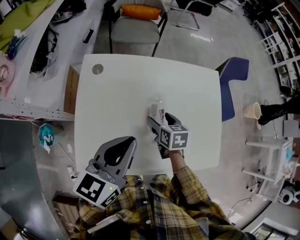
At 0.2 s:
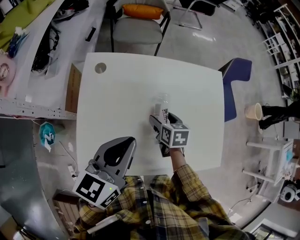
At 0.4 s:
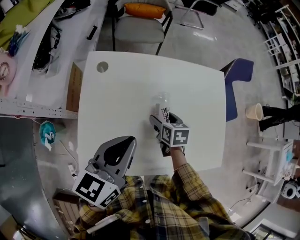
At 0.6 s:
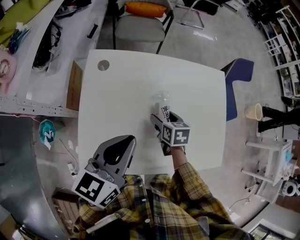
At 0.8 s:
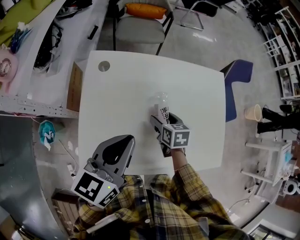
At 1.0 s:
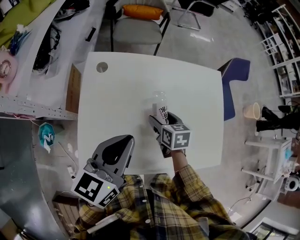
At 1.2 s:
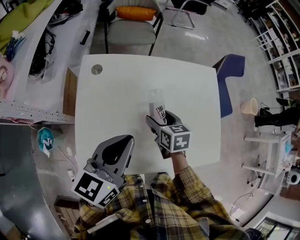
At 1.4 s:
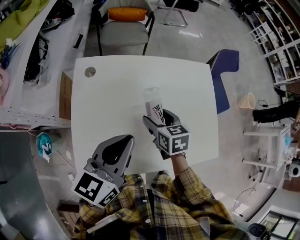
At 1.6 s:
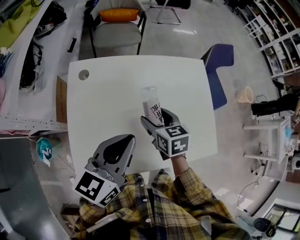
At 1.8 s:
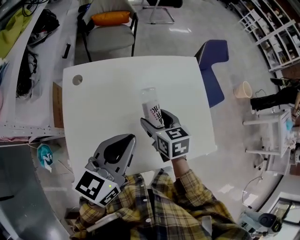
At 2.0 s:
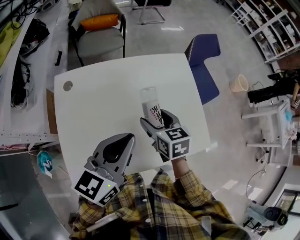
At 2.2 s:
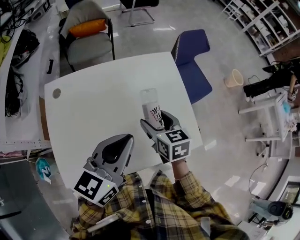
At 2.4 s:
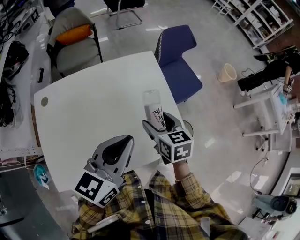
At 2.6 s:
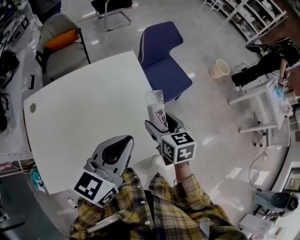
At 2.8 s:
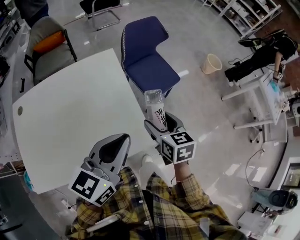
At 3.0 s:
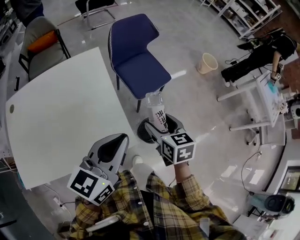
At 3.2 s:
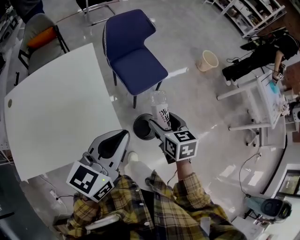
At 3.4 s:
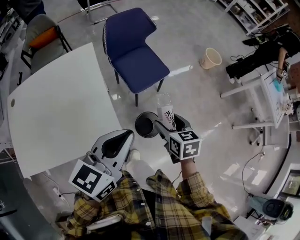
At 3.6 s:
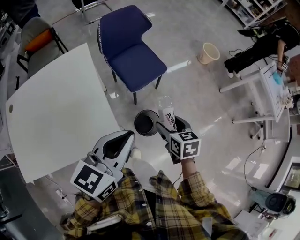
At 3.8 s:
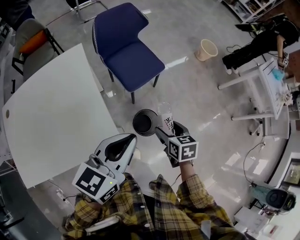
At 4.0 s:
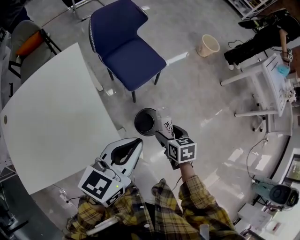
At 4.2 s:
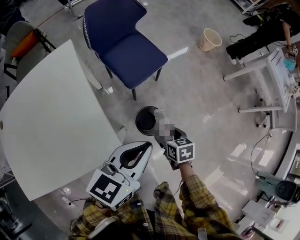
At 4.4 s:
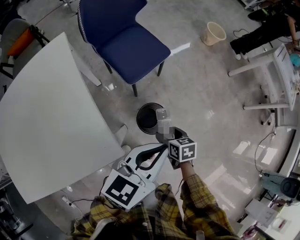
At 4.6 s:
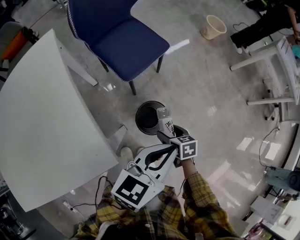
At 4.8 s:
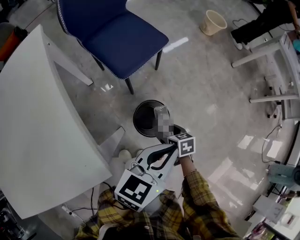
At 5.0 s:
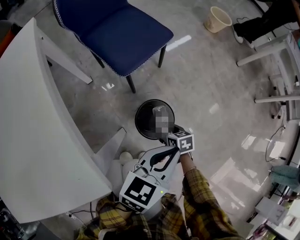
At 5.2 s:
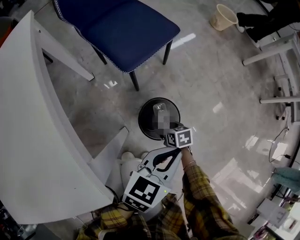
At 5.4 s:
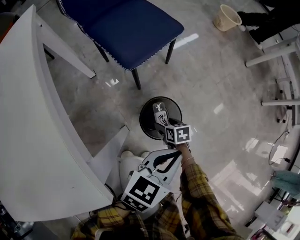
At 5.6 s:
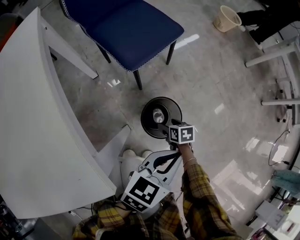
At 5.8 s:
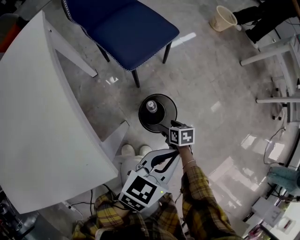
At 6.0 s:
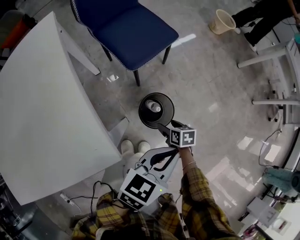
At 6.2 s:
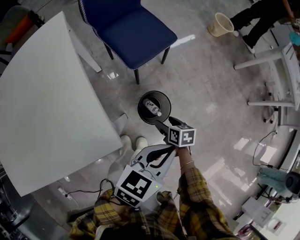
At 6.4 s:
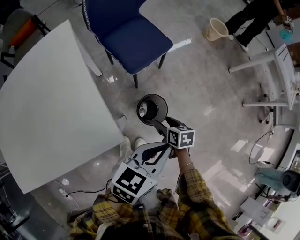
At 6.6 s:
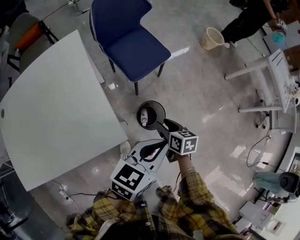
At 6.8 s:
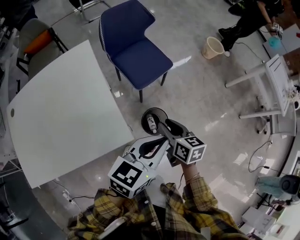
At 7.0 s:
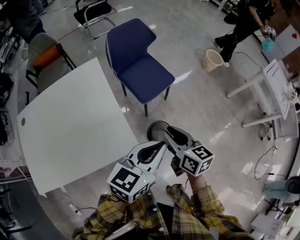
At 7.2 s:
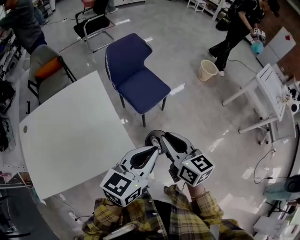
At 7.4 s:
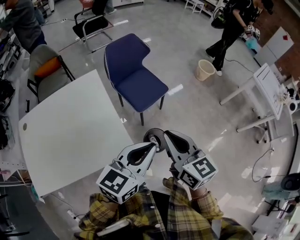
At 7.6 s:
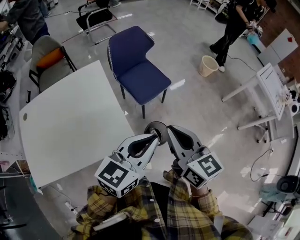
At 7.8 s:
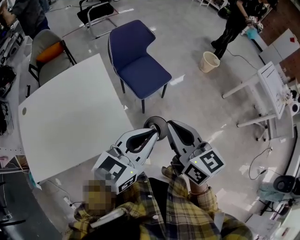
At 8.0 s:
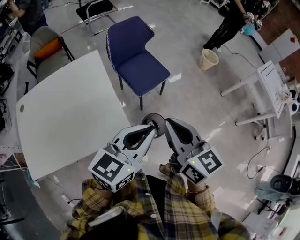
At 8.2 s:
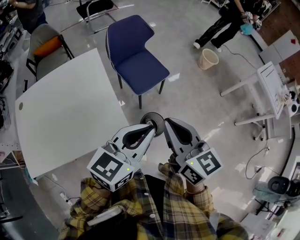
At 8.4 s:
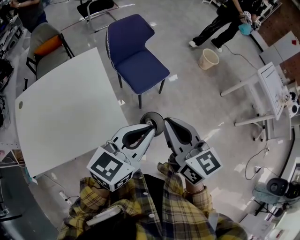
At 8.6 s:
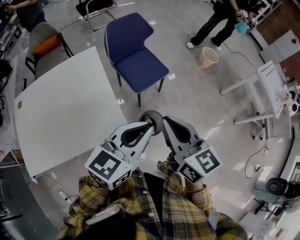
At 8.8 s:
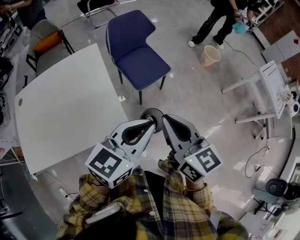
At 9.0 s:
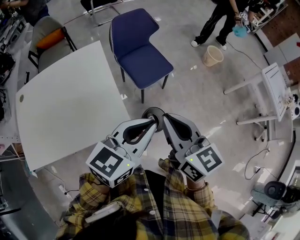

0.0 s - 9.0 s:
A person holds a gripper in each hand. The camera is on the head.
0.0 s - 1.6 s: The right gripper travels upward by roughly 5 cm.
1.6 s - 3.0 s: The two grippers travel together, to the right, approximately 50 cm. The right gripper changes its angle by approximately 20 degrees.
3.0 s - 4.4 s: The left gripper is displaced to the right and downward by about 25 cm, and swivels approximately 20 degrees. Meanwhile the right gripper is displaced downward and to the right by about 30 cm, and rotates about 20 degrees.
4.4 s - 6.0 s: The grippers both shift downward by approximately 15 cm.
6.0 s - 7.6 s: The right gripper is displaced upward by roughly 60 cm, points its fingers about 50 degrees further upward, and closes up; the left gripper heads upward, covering some 35 cm, and turns by roughly 20 degrees.
7.6 s - 9.0 s: The grippers move only a little.

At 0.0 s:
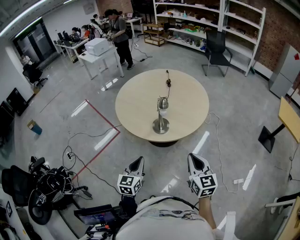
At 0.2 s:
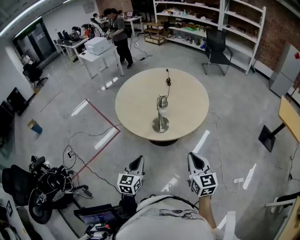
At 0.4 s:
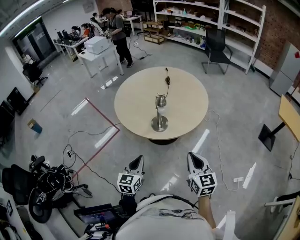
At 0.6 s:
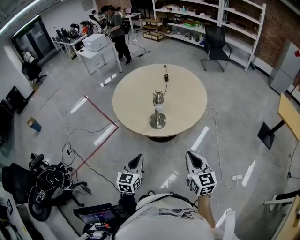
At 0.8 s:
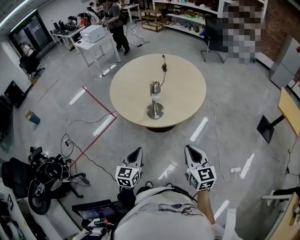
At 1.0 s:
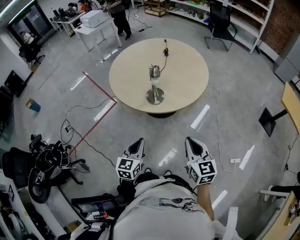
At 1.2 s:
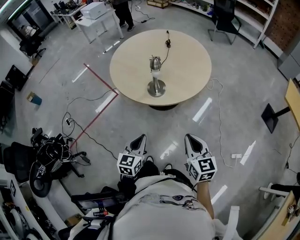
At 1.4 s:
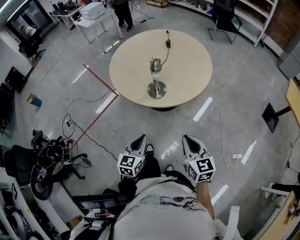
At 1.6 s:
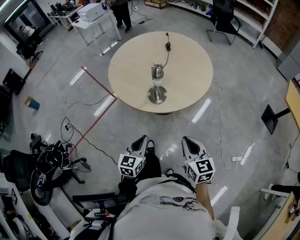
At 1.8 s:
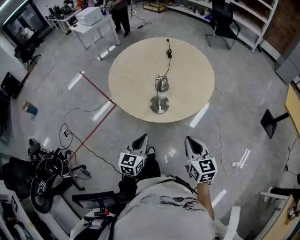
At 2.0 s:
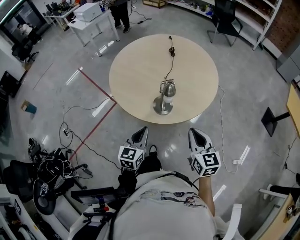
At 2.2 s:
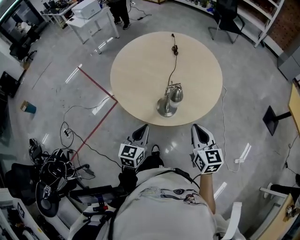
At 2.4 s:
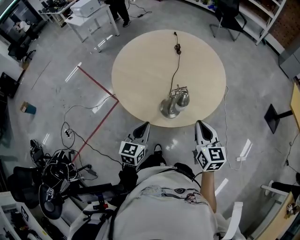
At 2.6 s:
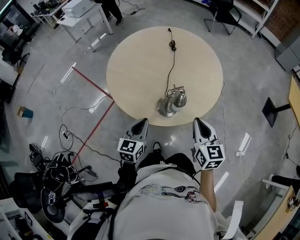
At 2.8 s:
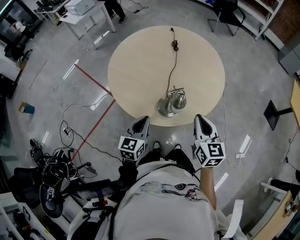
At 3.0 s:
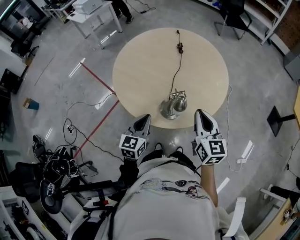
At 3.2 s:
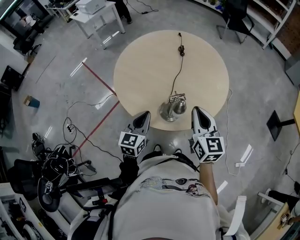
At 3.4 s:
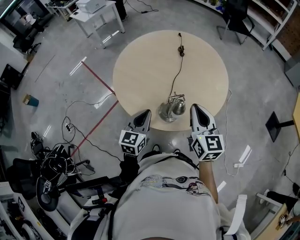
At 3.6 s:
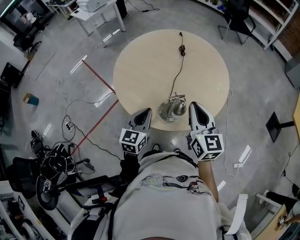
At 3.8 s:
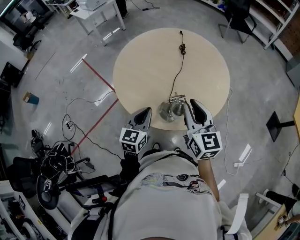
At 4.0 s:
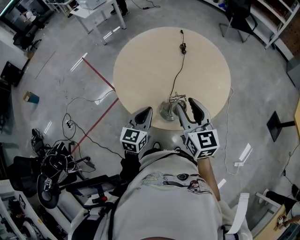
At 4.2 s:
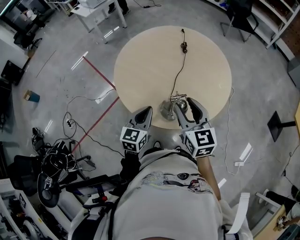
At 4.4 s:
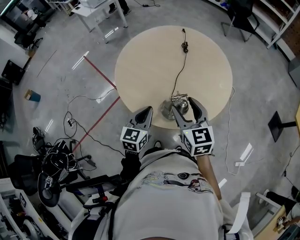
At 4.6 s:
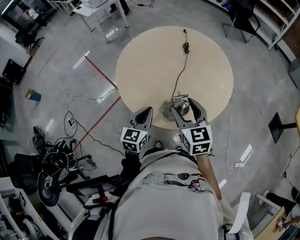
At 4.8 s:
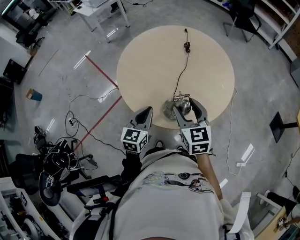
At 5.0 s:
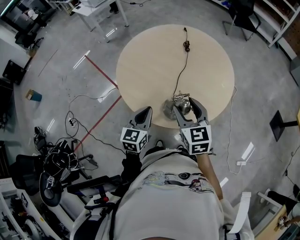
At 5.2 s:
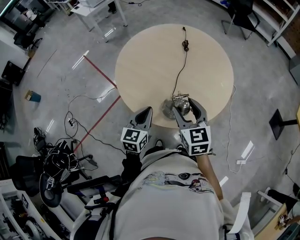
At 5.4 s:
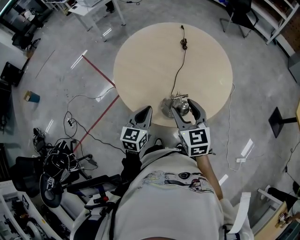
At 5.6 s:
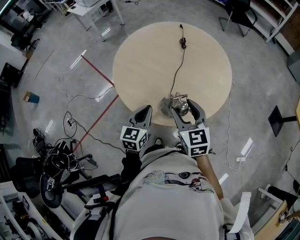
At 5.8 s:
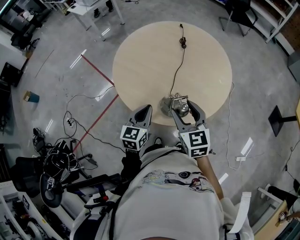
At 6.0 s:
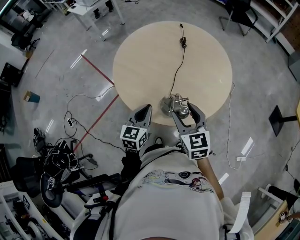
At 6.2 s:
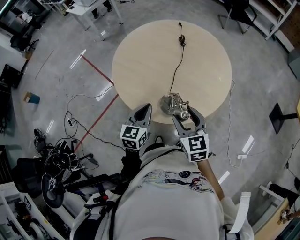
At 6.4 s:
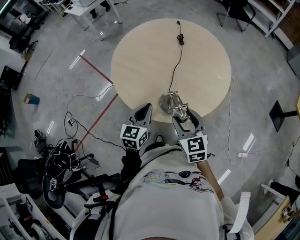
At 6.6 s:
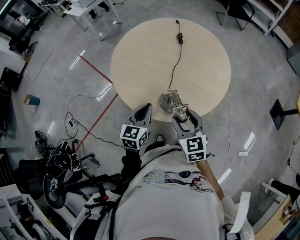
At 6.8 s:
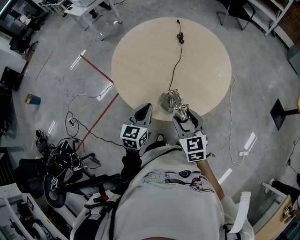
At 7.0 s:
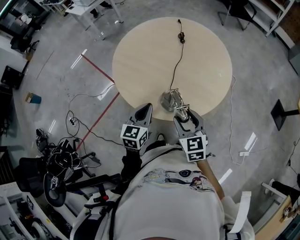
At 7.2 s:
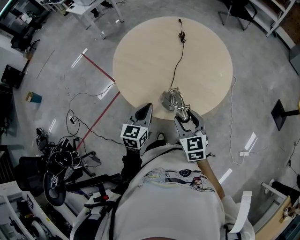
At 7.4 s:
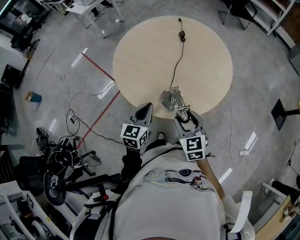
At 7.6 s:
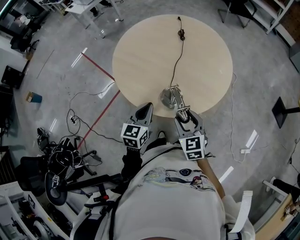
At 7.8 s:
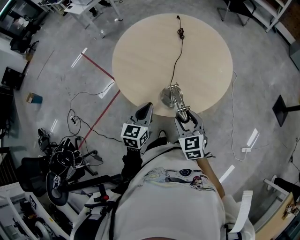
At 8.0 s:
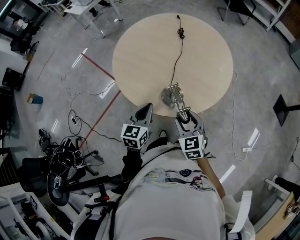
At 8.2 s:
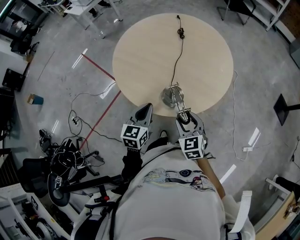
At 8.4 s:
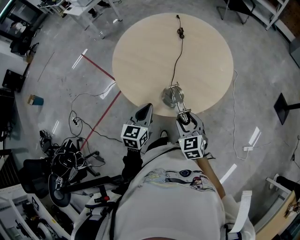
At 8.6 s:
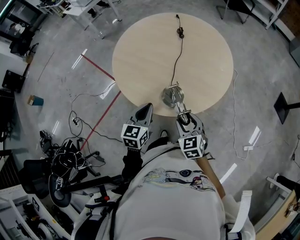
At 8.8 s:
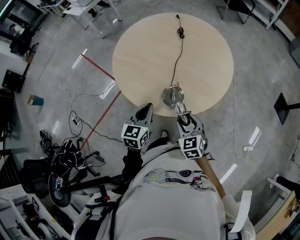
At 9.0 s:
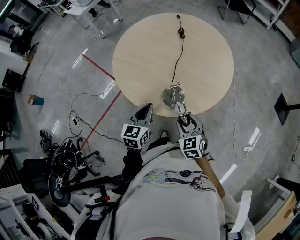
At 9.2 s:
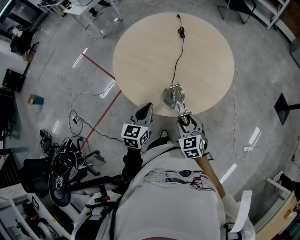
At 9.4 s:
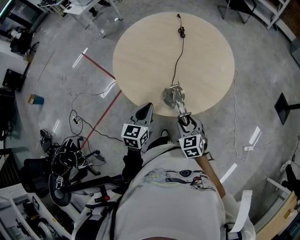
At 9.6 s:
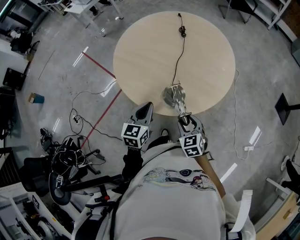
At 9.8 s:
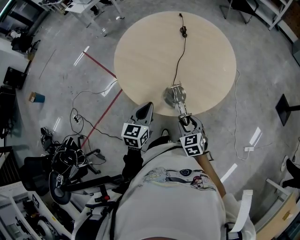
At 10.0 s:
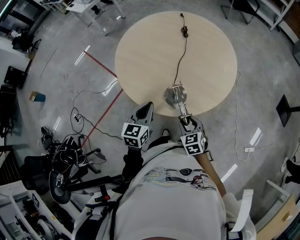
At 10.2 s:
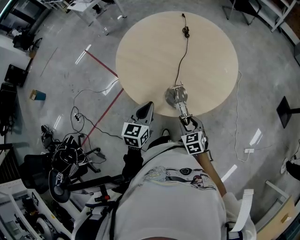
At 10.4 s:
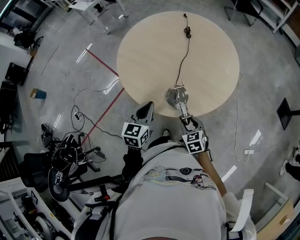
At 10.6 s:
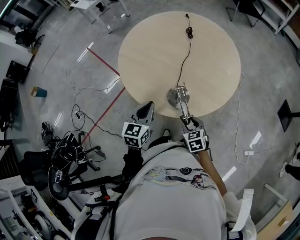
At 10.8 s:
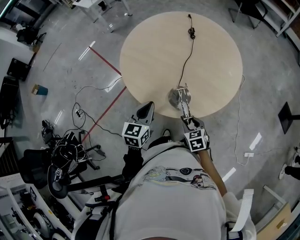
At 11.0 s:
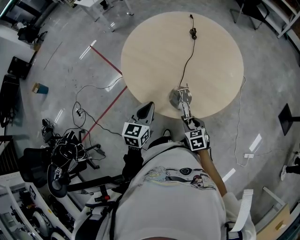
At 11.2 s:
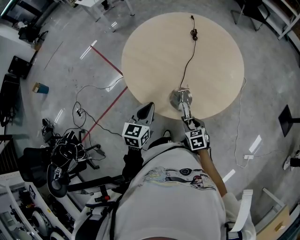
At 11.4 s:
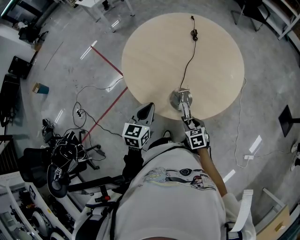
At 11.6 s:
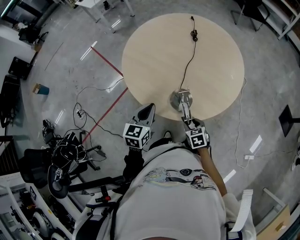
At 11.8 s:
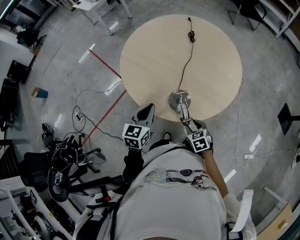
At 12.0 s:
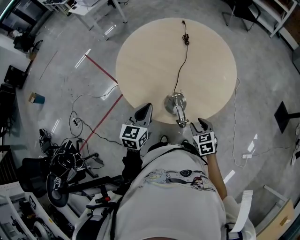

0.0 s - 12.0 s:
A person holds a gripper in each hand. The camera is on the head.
0.0 s - 1.6 s: The right gripper travels downward by some 5 cm, while the left gripper shifts approximately 5 cm to the right.
1.6 s - 3.0 s: The grippers both shift forward by roughly 25 cm.
3.0 s - 4.4 s: The right gripper is displaced to the left by roughly 10 cm, and opens up.
4.4 s - 6.0 s: The grippers make only small movements.
6.0 s - 7.6 s: The right gripper moves downward, about 10 cm.
7.6 s - 9.0 s: The right gripper travels downward by approximately 5 cm.
9.0 s - 10.4 s: The right gripper shifts about 5 cm downward.
10.4 s - 12.0 s: The right gripper heads to the right, covering roughly 5 cm.

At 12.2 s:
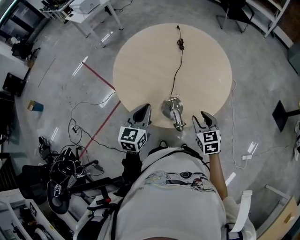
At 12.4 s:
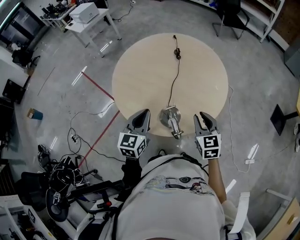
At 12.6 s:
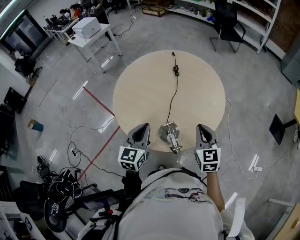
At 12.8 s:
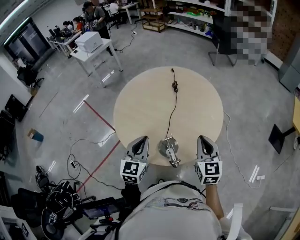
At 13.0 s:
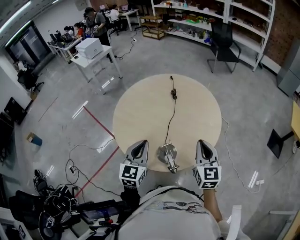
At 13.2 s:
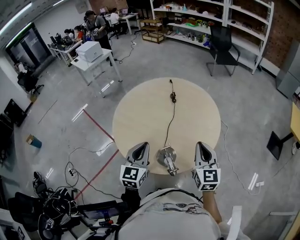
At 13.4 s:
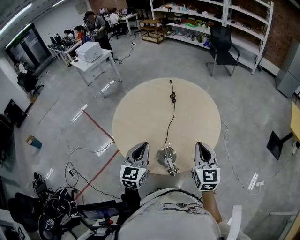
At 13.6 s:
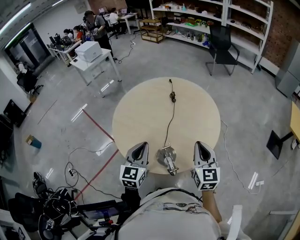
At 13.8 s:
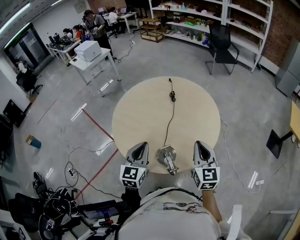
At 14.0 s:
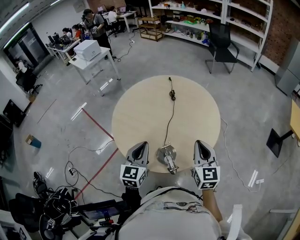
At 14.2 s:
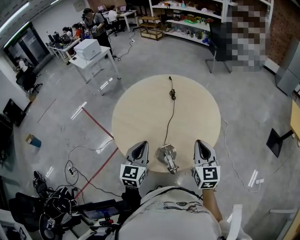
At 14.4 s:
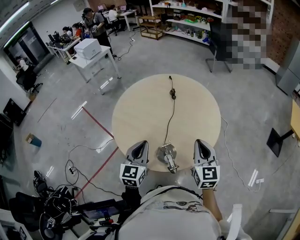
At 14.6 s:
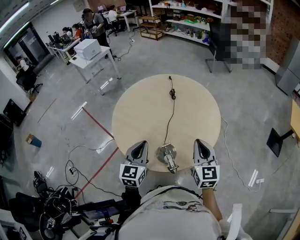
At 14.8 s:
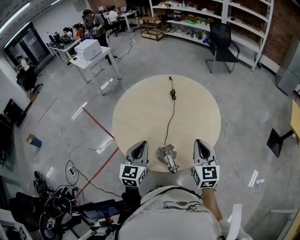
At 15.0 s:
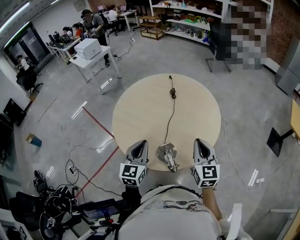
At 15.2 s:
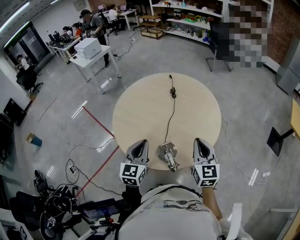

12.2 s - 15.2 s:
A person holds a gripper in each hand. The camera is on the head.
12.2 s - 13.8 s: The left gripper heads upward, covering some 5 cm. The right gripper goes about 15 cm upward, changes its angle by some 30 degrees, and closes.
13.8 s - 15.2 s: The two grippers keep their place.
